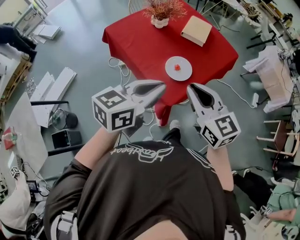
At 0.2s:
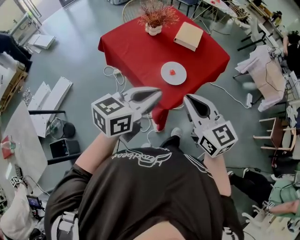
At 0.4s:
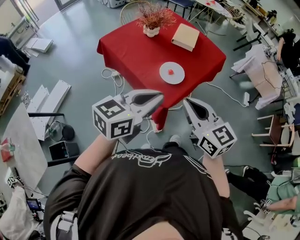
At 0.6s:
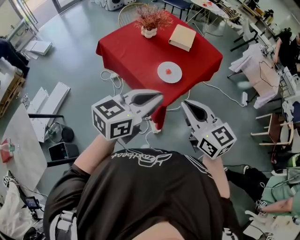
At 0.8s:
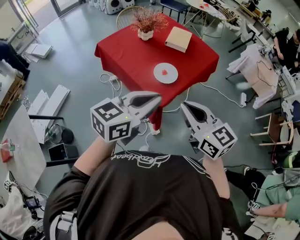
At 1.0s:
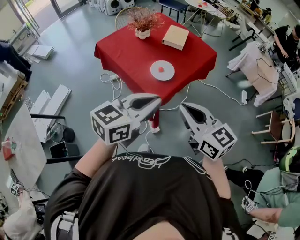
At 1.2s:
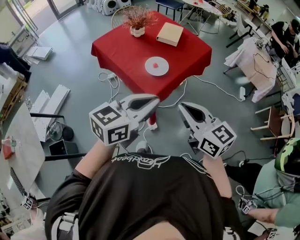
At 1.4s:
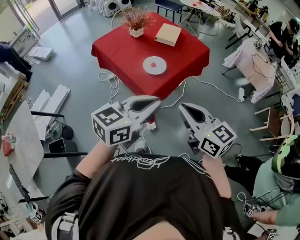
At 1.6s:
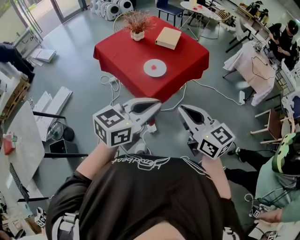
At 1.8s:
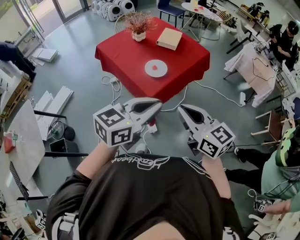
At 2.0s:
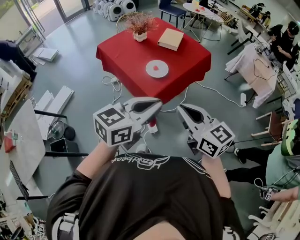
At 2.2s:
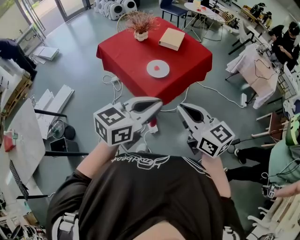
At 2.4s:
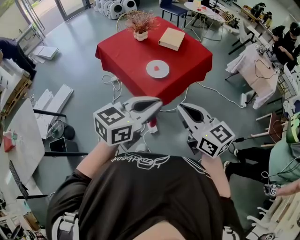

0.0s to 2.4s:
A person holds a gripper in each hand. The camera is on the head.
0.0s to 1.2s: The two grippers go approximately 15 cm backward and to the right.
1.2s to 2.4s: The grippers stay close to where they were, moving slightly.

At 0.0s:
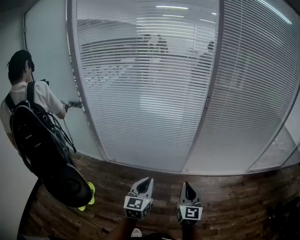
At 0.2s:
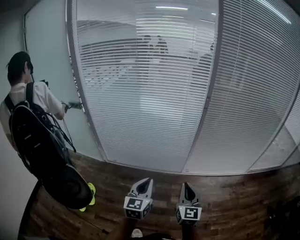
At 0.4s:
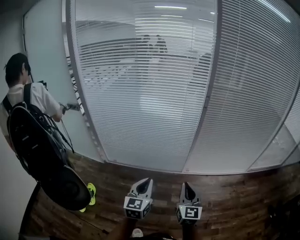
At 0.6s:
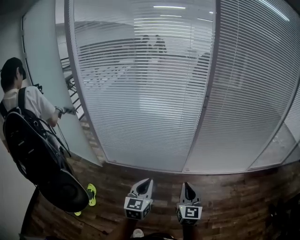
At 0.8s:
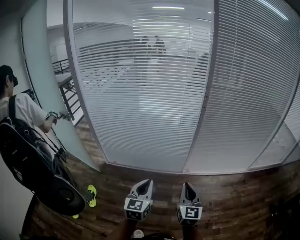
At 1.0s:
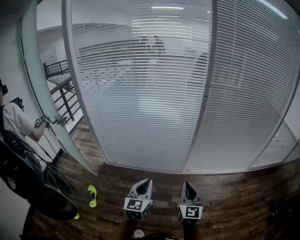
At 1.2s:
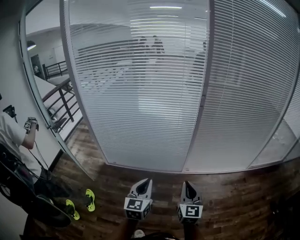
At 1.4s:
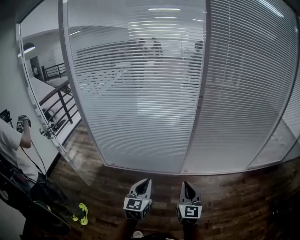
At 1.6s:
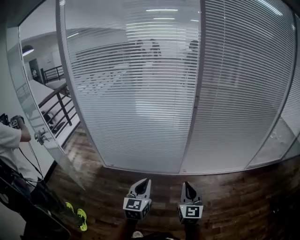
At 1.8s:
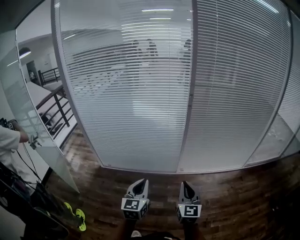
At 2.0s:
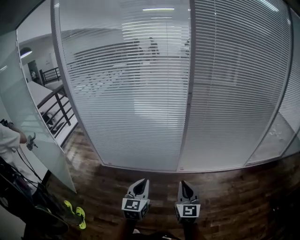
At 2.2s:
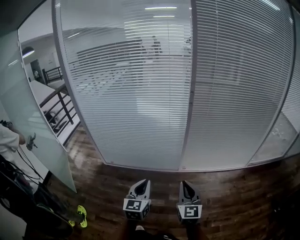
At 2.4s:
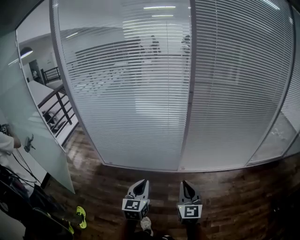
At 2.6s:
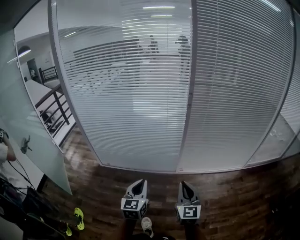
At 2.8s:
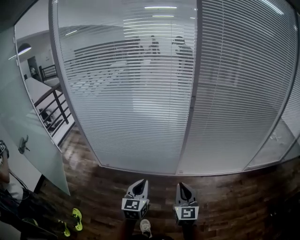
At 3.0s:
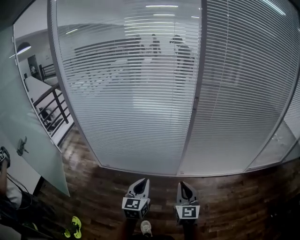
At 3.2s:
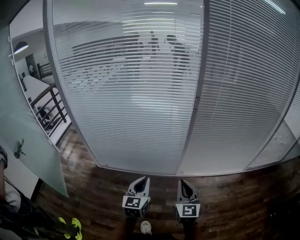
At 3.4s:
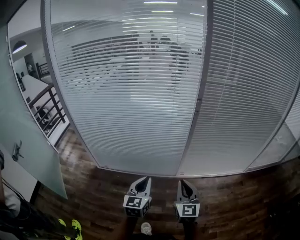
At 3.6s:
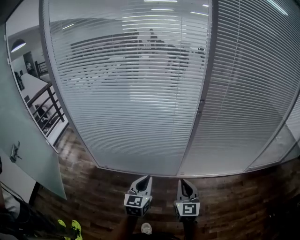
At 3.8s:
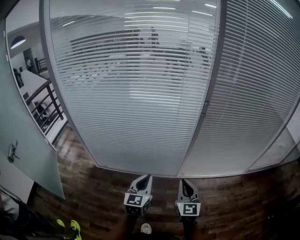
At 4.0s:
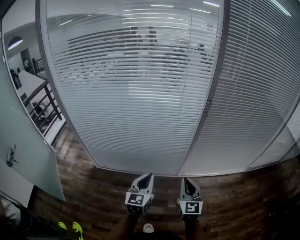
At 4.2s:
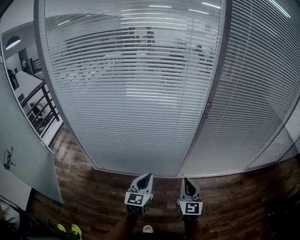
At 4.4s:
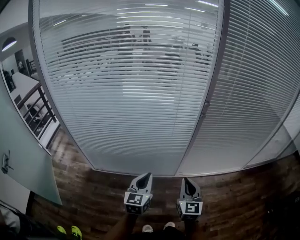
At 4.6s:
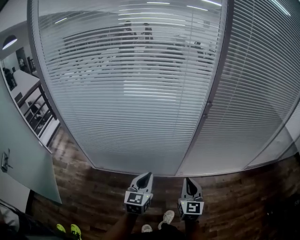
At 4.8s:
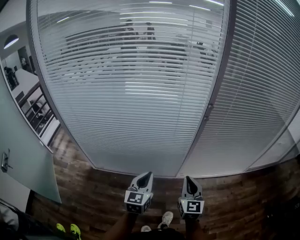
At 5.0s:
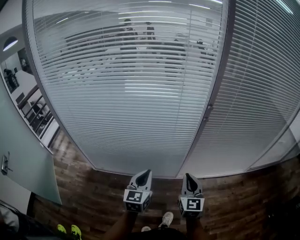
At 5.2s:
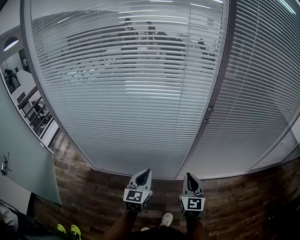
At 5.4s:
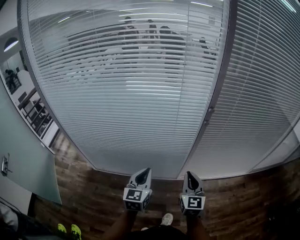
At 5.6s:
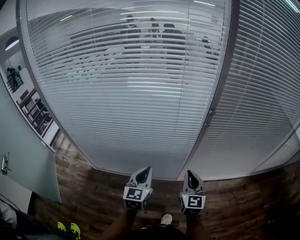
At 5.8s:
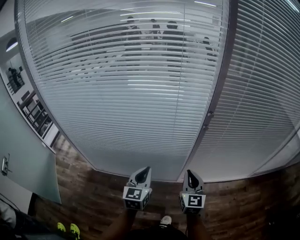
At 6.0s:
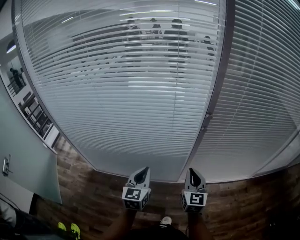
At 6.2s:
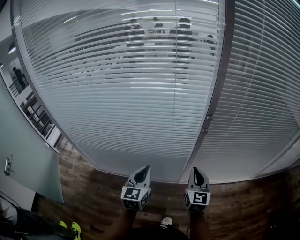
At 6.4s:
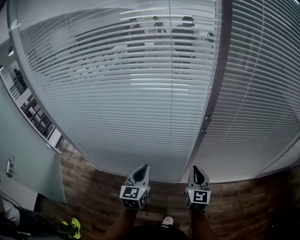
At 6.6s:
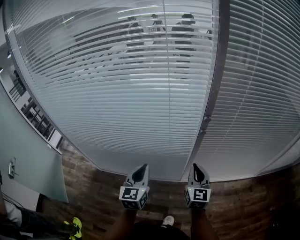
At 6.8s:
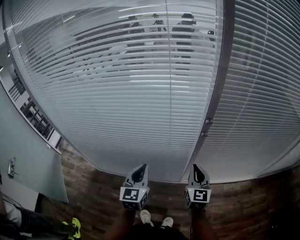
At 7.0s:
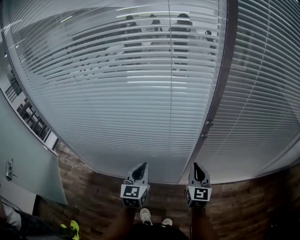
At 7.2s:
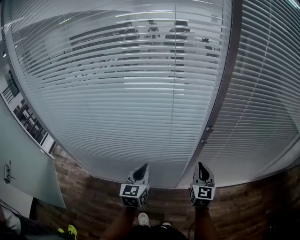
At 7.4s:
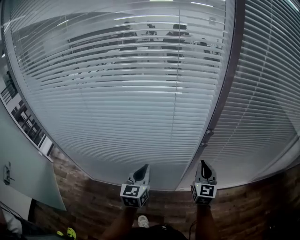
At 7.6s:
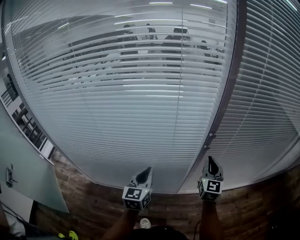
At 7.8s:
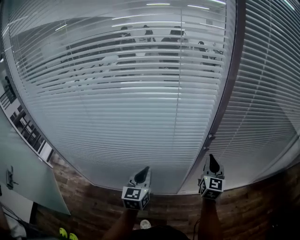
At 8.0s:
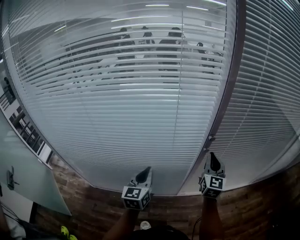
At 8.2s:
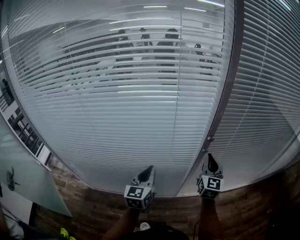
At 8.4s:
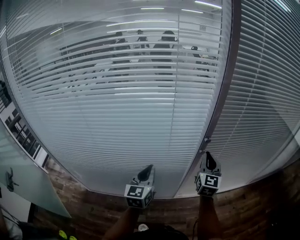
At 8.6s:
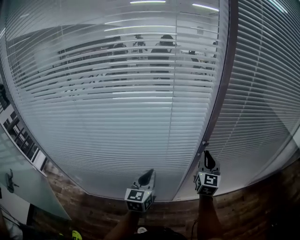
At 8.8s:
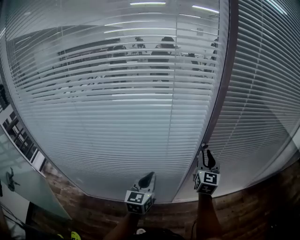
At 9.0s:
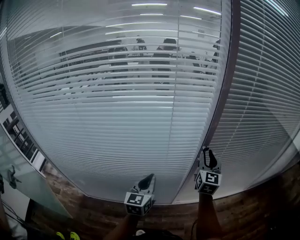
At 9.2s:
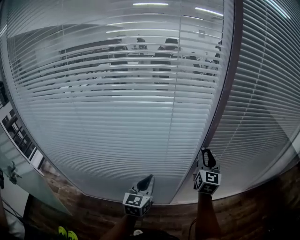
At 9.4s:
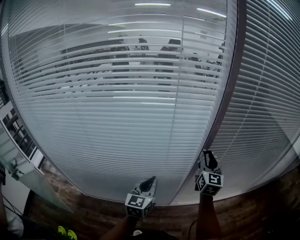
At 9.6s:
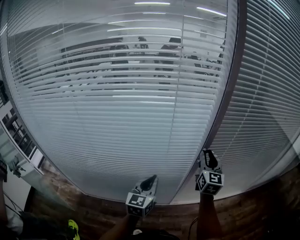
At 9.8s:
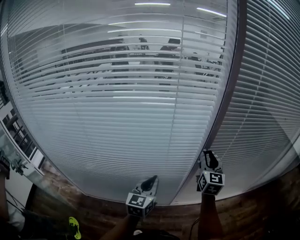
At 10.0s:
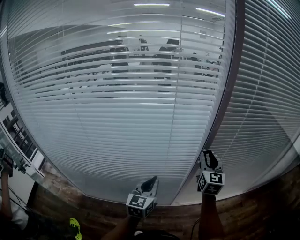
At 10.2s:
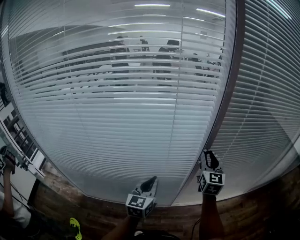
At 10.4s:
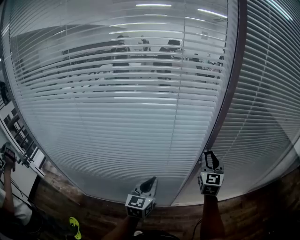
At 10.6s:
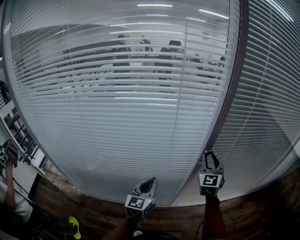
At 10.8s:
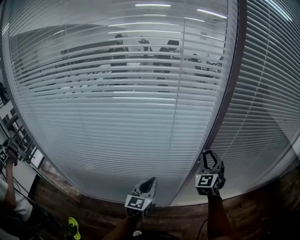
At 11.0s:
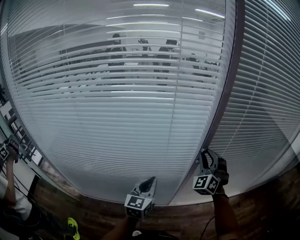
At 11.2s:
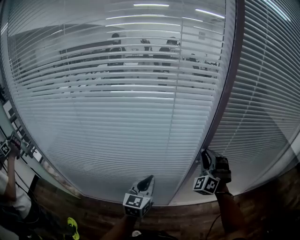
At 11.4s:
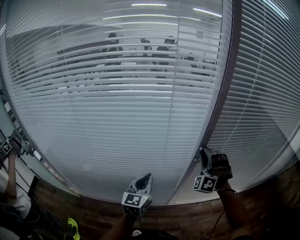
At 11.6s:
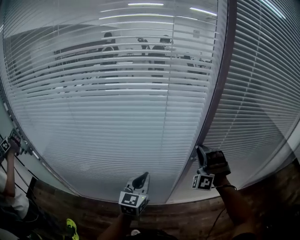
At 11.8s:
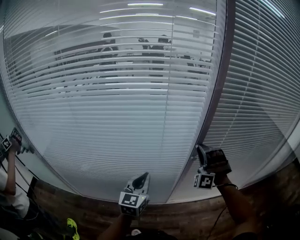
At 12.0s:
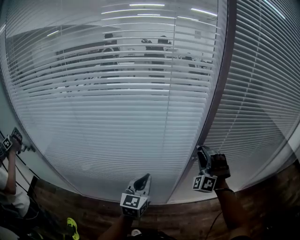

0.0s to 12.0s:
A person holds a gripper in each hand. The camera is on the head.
0.0s to 1.6s: The right gripper heads to the right, covering approximately 5 cm.
1.6s to 3.0s: The grippers both shift forward by about 5 cm.
3.0s to 4.4s: Both grippers travel together forward and to the left, some 15 cm.
4.4s to 6.0s: Both grippers travel together forward, some 15 cm.
6.0s to 7.6s: The right gripper goes about 15 cm forward and to the right. Meanwhile the left gripper shifts approximately 10 cm forward.
7.6s to 9.0s: The right gripper goes about 5 cm forward, and opens.
9.0s to 10.4s: The grippers stay close to where they were, moving slightly.
10.4s to 12.0s: The right gripper twists roughly 70 degrees counterclockwise, seen from behind.

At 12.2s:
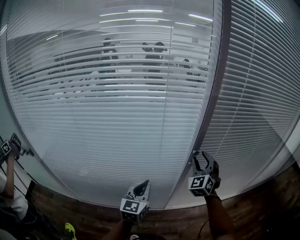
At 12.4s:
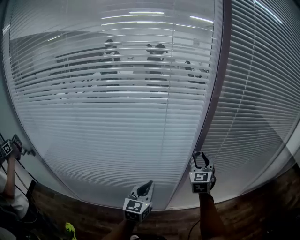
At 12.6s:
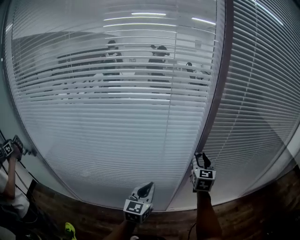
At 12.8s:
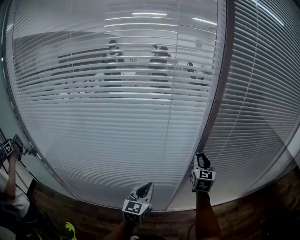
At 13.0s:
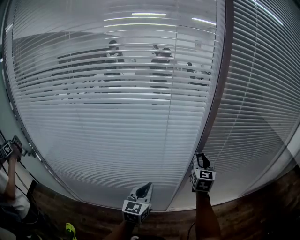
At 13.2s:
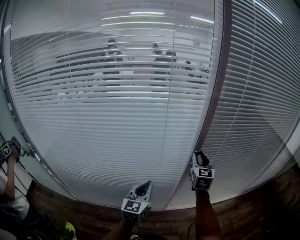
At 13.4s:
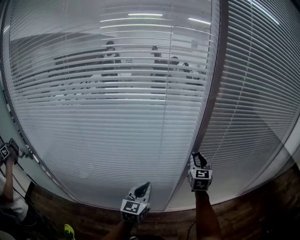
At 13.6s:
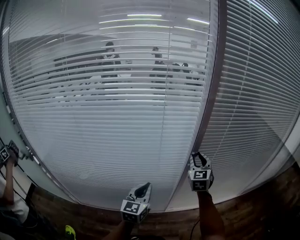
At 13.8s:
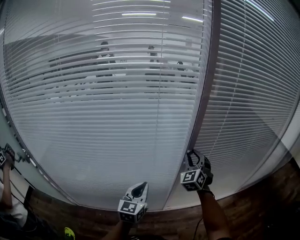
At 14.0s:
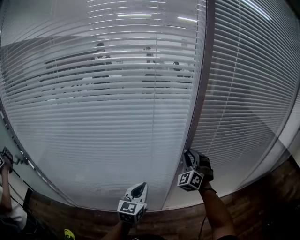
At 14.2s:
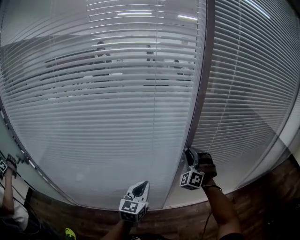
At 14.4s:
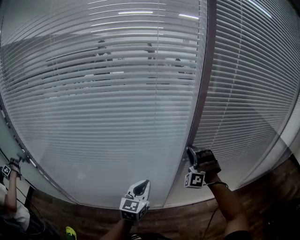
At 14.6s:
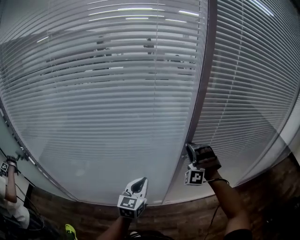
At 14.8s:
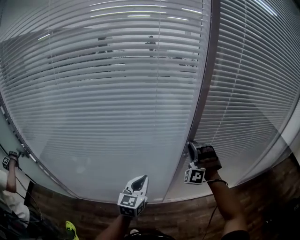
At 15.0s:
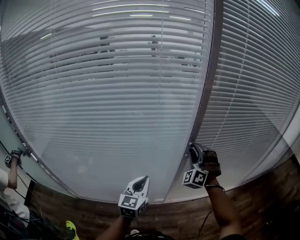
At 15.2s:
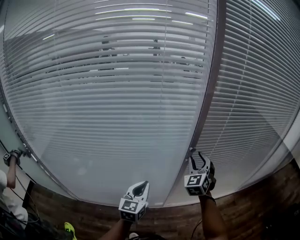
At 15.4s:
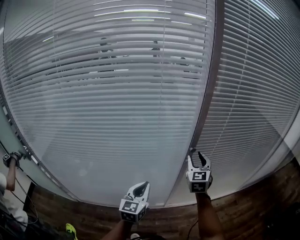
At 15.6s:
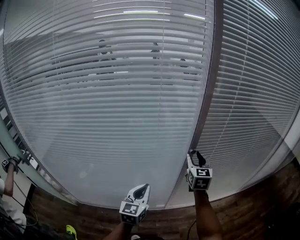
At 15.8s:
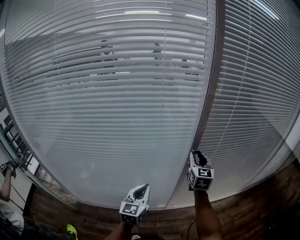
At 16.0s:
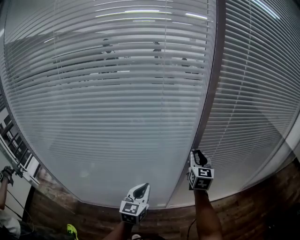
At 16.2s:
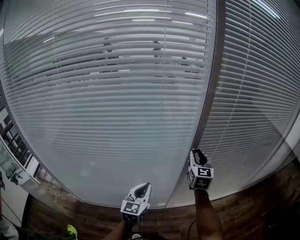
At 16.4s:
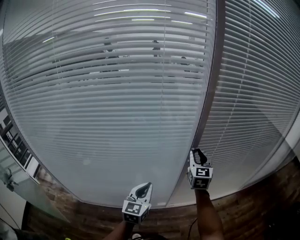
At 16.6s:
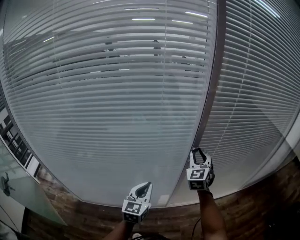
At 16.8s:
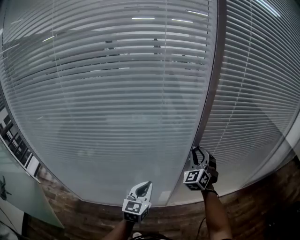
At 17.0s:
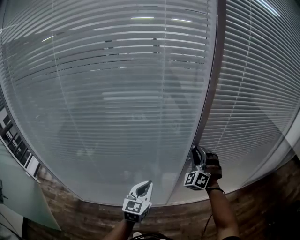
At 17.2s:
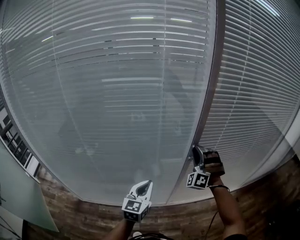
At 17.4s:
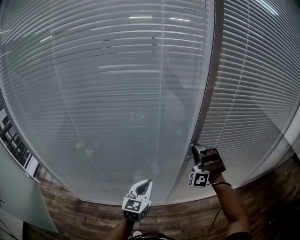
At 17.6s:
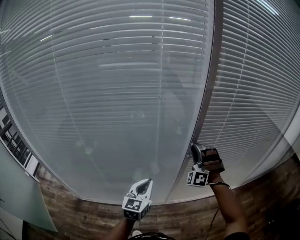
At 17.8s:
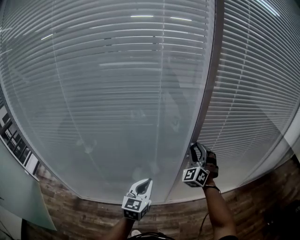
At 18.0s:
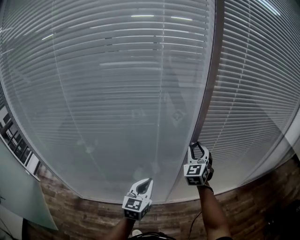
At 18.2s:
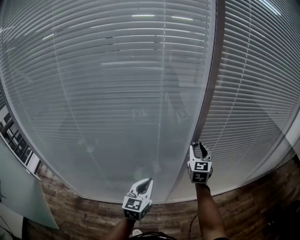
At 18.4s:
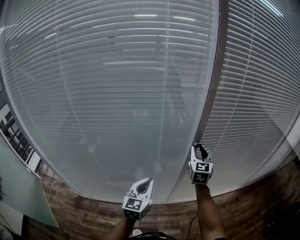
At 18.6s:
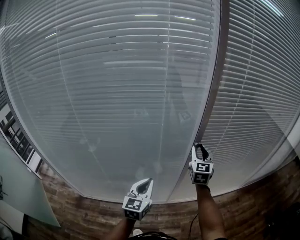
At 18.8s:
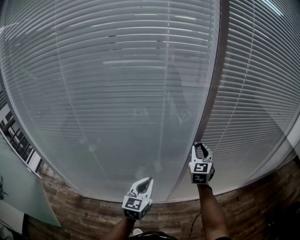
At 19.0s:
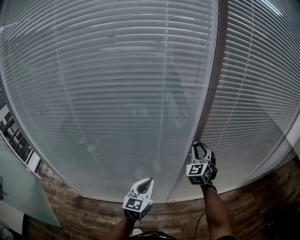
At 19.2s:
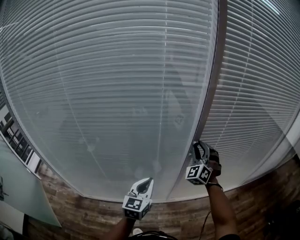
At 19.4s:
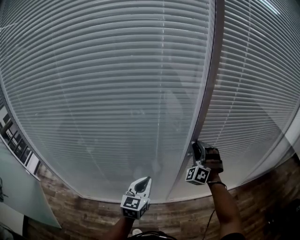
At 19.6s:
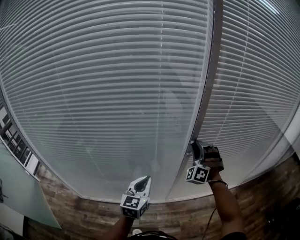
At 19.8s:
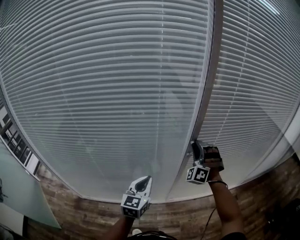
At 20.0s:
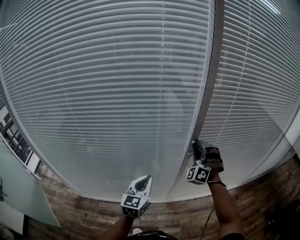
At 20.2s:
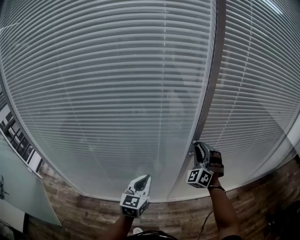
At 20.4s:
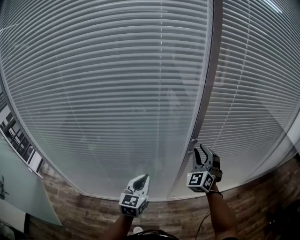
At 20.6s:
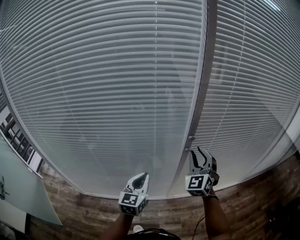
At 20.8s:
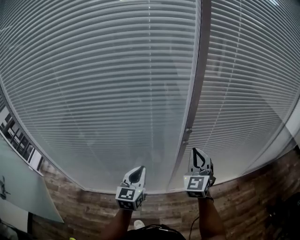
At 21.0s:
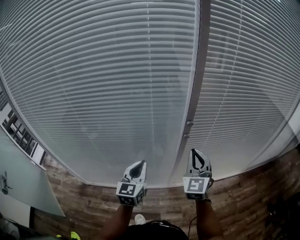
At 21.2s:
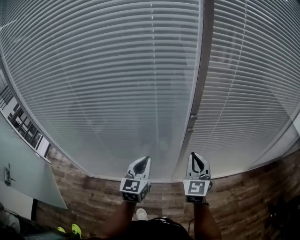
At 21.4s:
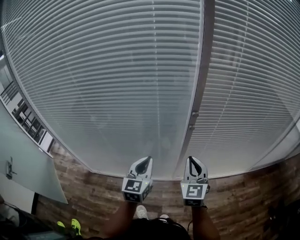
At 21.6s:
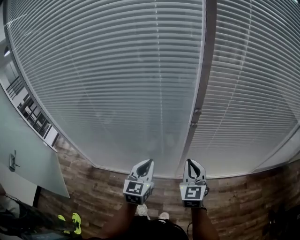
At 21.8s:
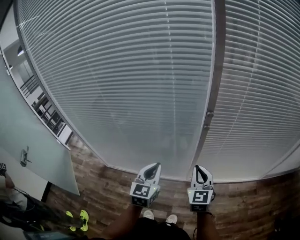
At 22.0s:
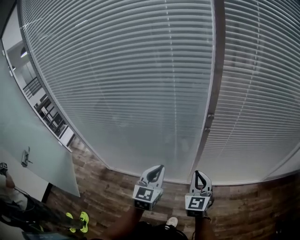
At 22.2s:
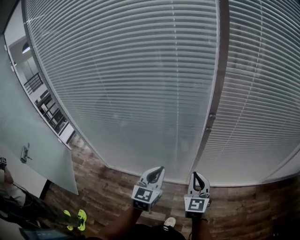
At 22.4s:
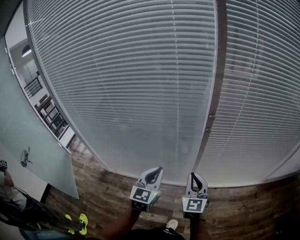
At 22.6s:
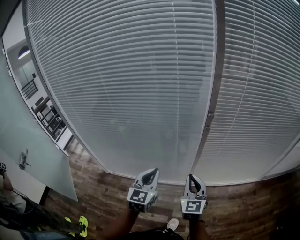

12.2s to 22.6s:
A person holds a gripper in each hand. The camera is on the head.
12.2s to 13.6s: The right gripper changes its angle by about 30 degrees.
18.2s to 19.6s: The right gripper rolls counterclockwise, seen from behind, by approximately 70 degrees.
19.6s to 21.2s: The right gripper is displaced backward by some 15 cm, rotates around the line of its fingers by about 70 degrees, clockwise from behind, and closes up.
21.2s to 22.6s: The left gripper shifts about 10 cm backward. The right gripper shifts some 15 cm backward, downward and to the left.
